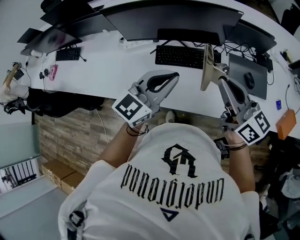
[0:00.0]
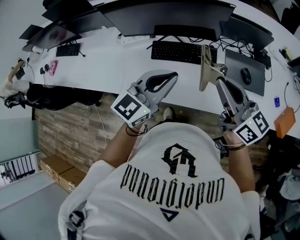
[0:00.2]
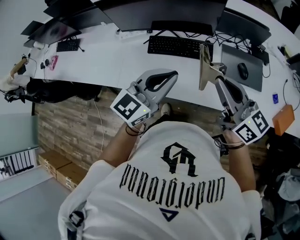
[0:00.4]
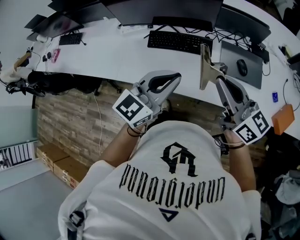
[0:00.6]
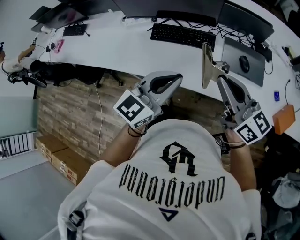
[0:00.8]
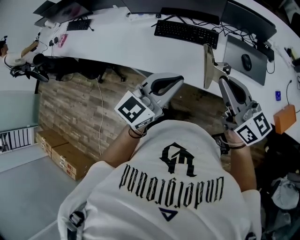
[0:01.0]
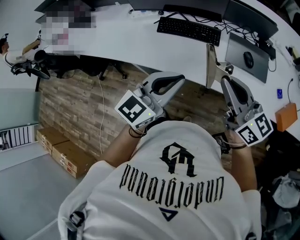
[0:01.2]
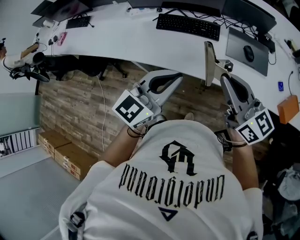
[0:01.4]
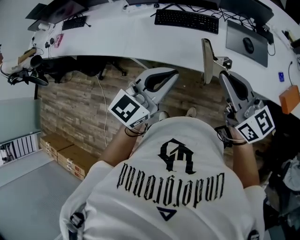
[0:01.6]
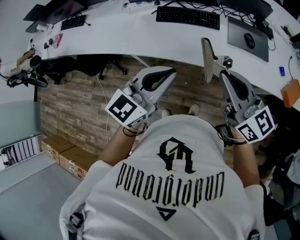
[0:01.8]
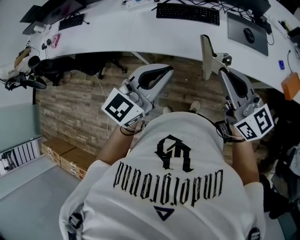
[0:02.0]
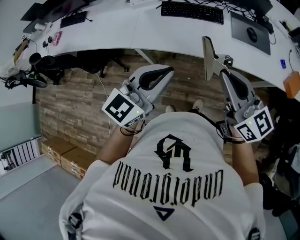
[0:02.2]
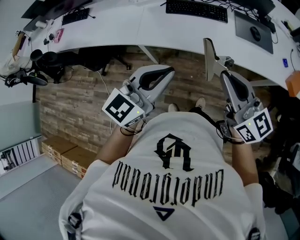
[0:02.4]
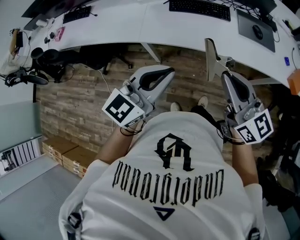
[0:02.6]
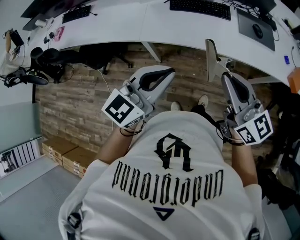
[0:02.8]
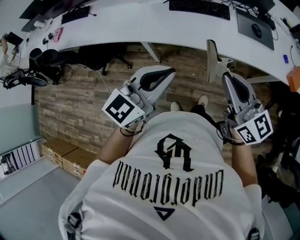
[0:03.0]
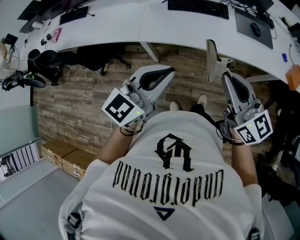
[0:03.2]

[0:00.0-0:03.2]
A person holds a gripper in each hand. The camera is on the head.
0.0 to 1.6 s: The grippers both shift backward by some 25 cm.
1.6 to 3.2 s: The two grippers go about 20 cm to the left and backward.

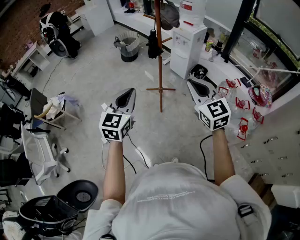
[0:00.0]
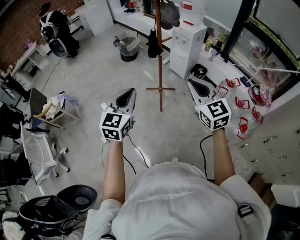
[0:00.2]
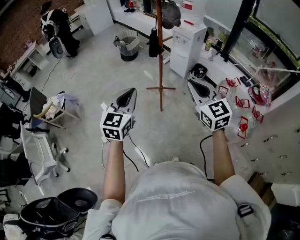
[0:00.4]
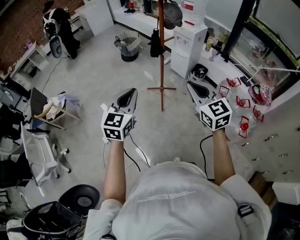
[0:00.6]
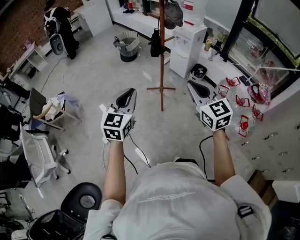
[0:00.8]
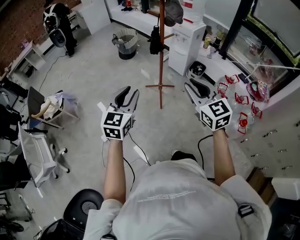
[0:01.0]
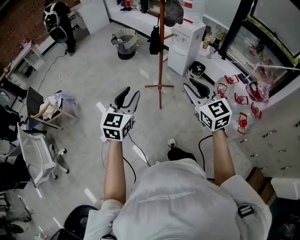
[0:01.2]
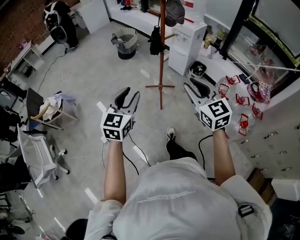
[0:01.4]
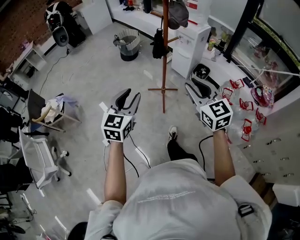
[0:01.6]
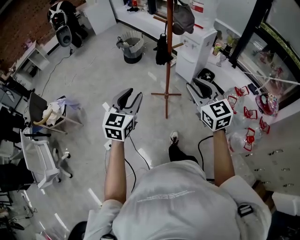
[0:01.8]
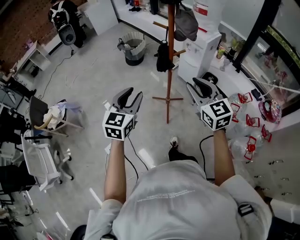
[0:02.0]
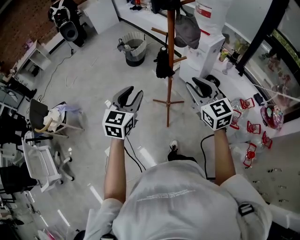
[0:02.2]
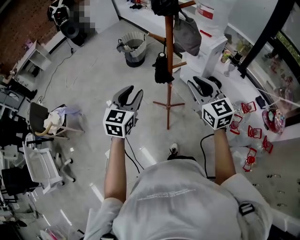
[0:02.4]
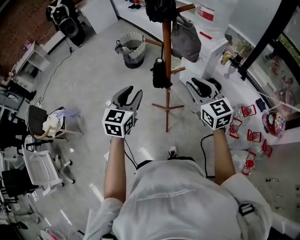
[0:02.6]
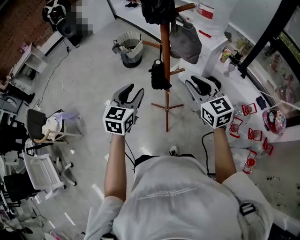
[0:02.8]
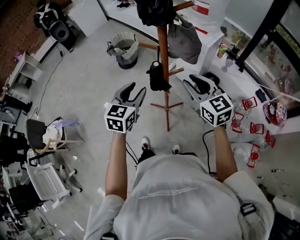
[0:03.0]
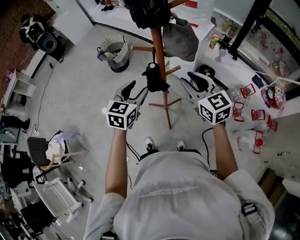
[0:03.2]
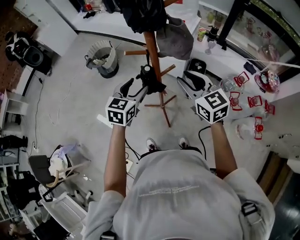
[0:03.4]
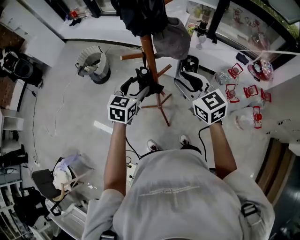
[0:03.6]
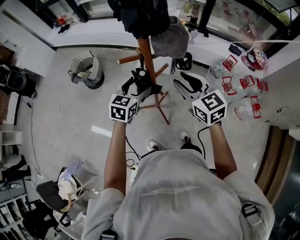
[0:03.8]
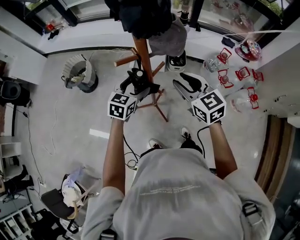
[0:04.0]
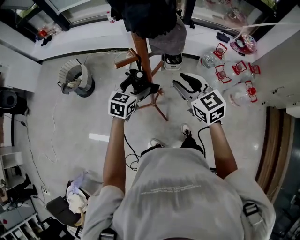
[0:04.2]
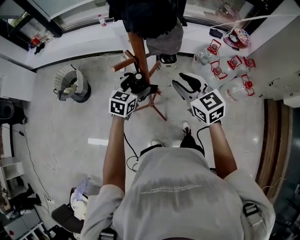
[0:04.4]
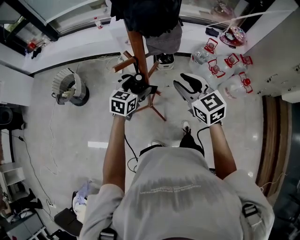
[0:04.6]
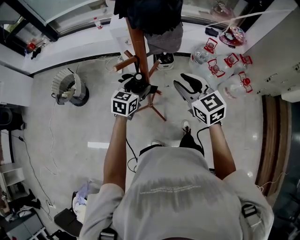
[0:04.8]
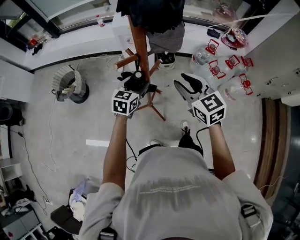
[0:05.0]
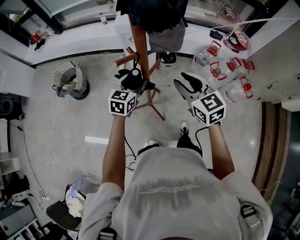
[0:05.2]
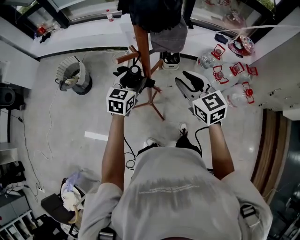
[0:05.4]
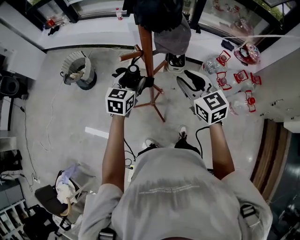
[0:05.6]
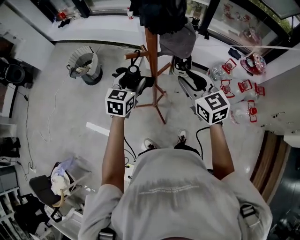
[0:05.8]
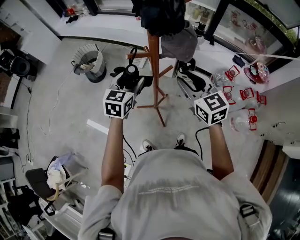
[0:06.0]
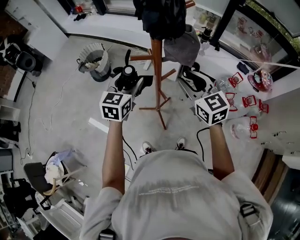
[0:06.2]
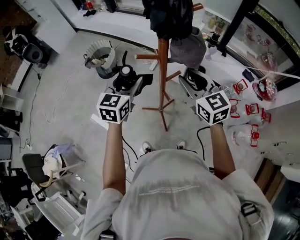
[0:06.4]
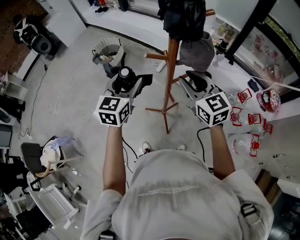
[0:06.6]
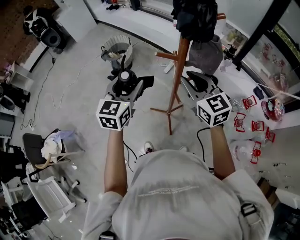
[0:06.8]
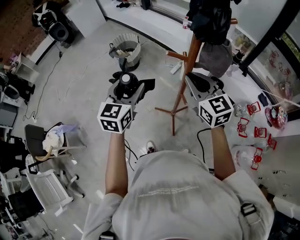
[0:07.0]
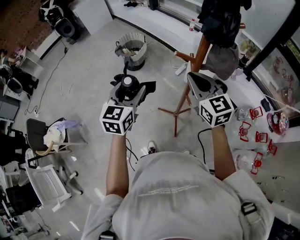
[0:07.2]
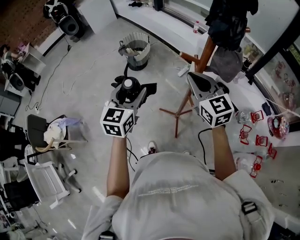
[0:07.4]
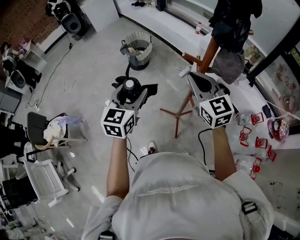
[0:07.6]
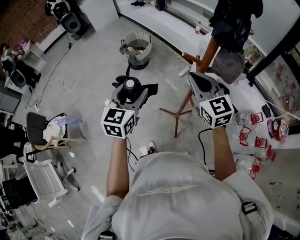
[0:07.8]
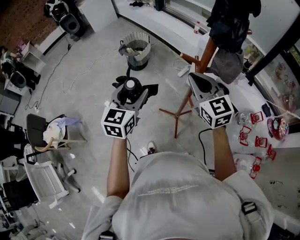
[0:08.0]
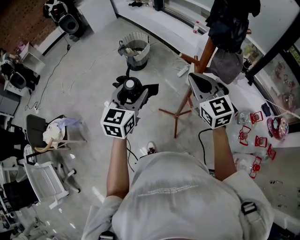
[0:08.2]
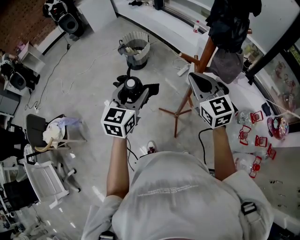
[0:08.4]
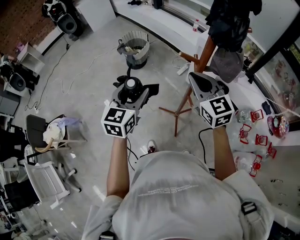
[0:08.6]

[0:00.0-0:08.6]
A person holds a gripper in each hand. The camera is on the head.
0.0 to 1.4 s: The left gripper moves some 5 cm, while the right gripper heads to the left, covering approximately 5 cm, and opens up.
1.4 to 2.8 s: Both grippers travel together forward, about 35 cm.
2.8 to 4.4 s: The right gripper travels downward by approximately 5 cm, and swivels about 40 degrees. The left gripper ends up approximately 25 cm from where it was, swivels about 50 degrees, and opens.
4.4 to 5.8 s: The left gripper shifts roughly 10 cm upward, changes its angle by some 20 degrees, and closes its fingers.
5.8 to 7.2 s: The right gripper ends up some 15 cm from where it was, rotates roughly 30 degrees, and closes; the left gripper changes place by roughly 20 cm, and rotates some 30 degrees.
7.2 to 8.6 s: The grippers move only a little.

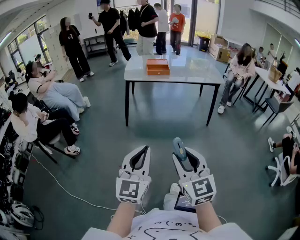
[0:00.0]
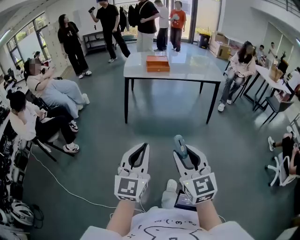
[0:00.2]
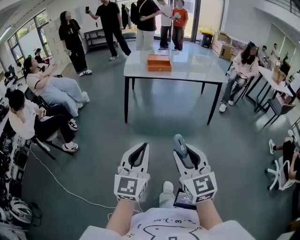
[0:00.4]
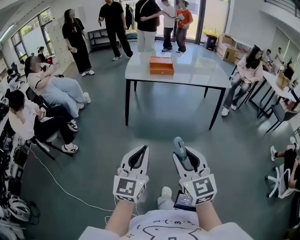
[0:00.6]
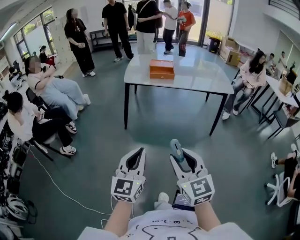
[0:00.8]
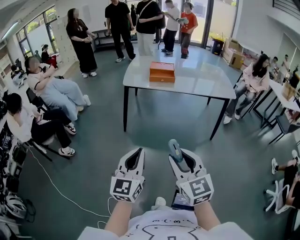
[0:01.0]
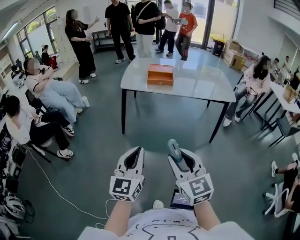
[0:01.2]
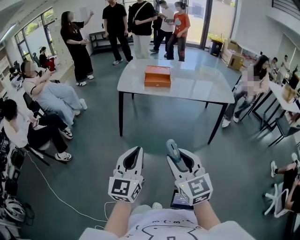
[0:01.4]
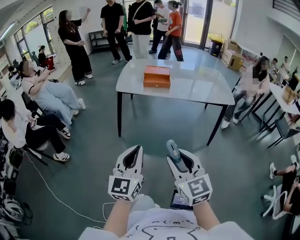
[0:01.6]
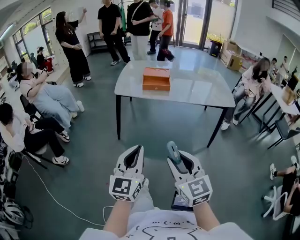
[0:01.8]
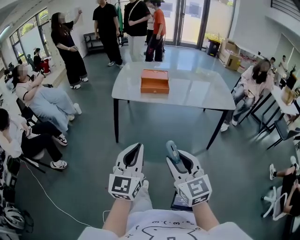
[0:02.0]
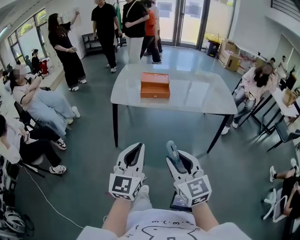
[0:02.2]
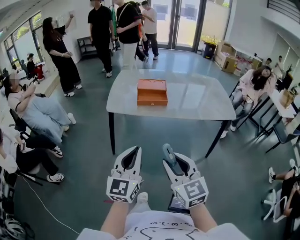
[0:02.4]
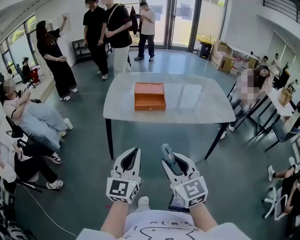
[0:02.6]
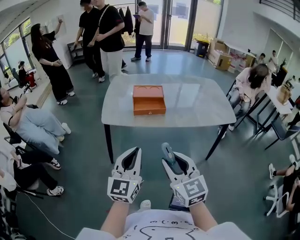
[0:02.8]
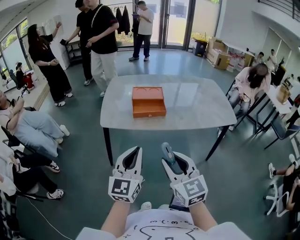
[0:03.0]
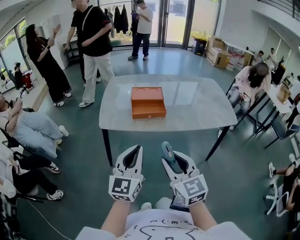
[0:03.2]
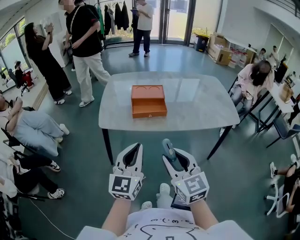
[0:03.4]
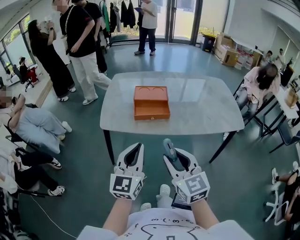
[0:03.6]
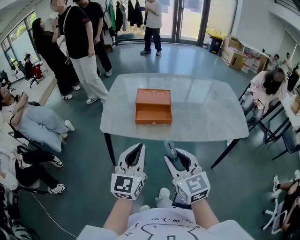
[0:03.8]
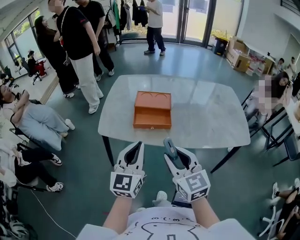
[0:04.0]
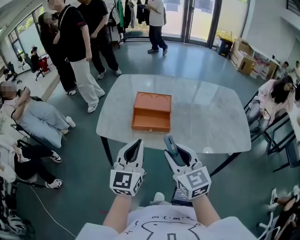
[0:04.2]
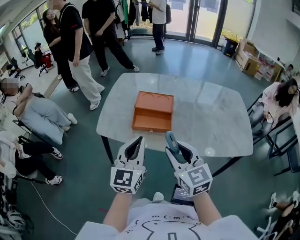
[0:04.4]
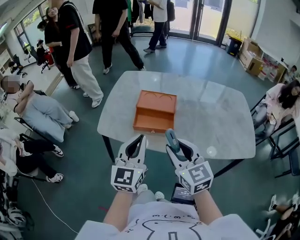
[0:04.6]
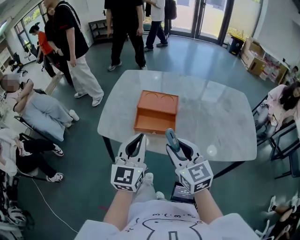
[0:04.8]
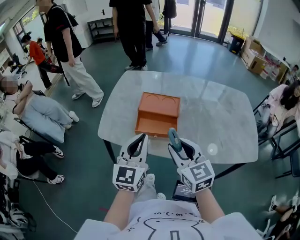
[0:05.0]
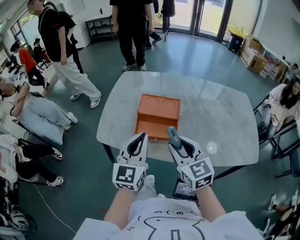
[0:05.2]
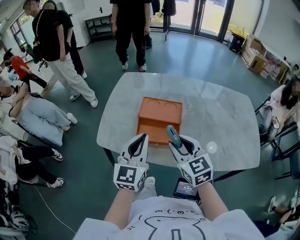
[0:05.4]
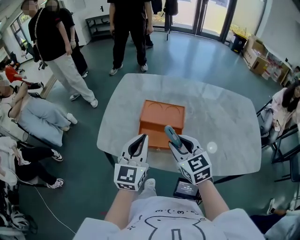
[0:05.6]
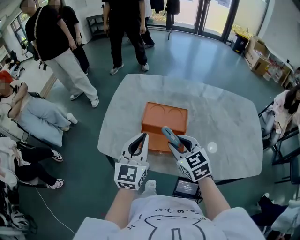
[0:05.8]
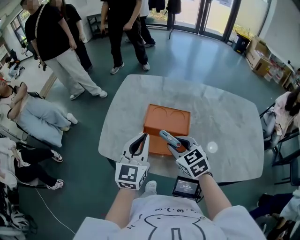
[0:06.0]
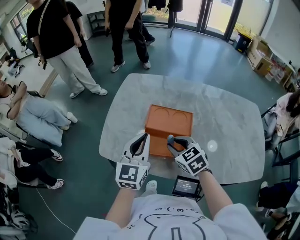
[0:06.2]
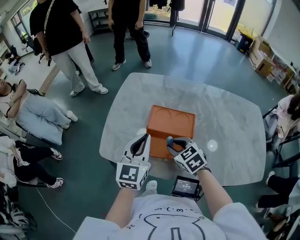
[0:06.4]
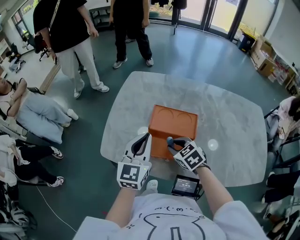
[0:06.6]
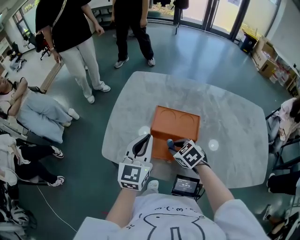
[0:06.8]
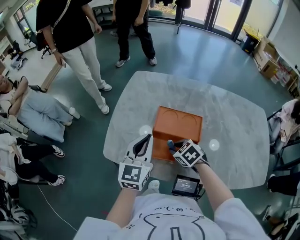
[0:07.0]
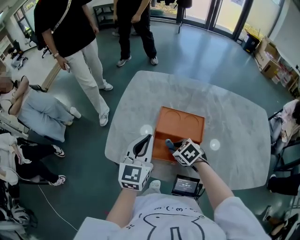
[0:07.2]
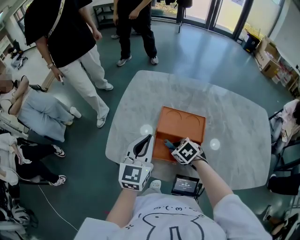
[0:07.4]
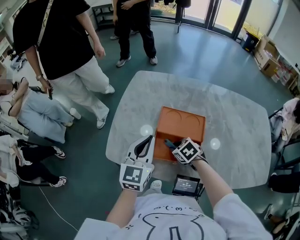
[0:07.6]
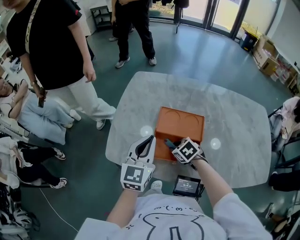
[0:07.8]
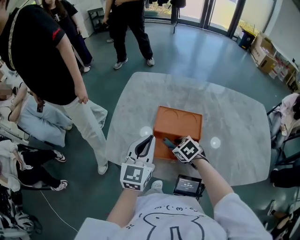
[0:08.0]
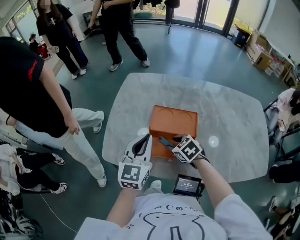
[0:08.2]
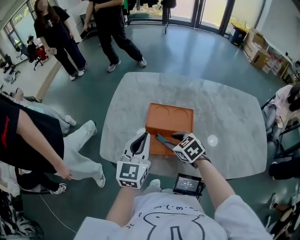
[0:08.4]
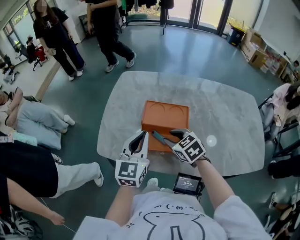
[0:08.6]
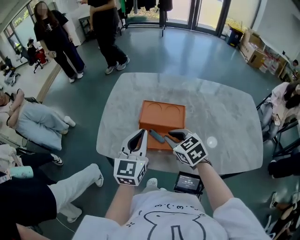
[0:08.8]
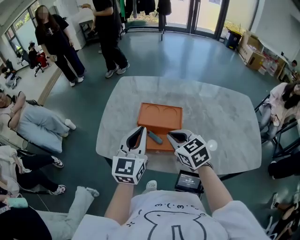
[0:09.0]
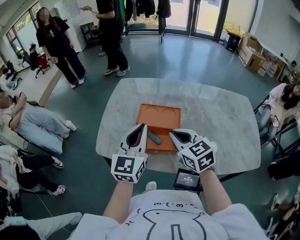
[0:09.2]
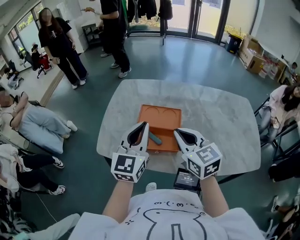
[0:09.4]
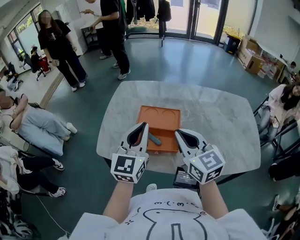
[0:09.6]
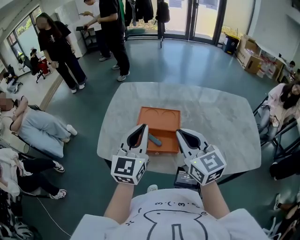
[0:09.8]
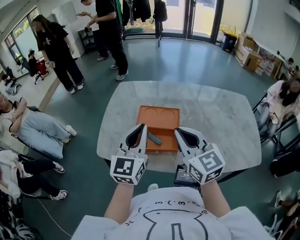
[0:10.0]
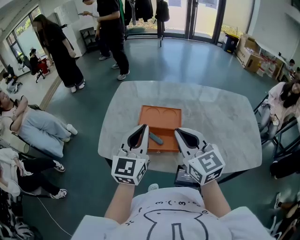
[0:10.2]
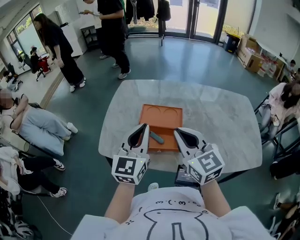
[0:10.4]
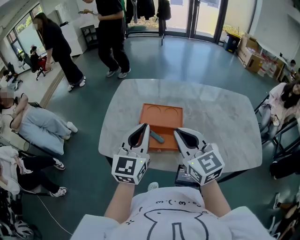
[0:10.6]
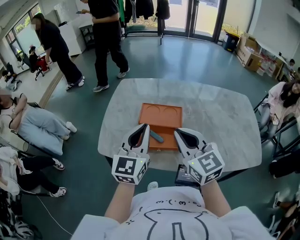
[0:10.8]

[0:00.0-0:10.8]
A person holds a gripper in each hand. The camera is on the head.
0.0 to 1.6 s: Both grippers travel together forward, some 25 cm.
1.6 to 3.0 s: Both grippers move forward, about 30 cm.
3.0 to 4.6 s: The grippers both shift forward by roughly 20 cm.
4.6 to 6.2 s: The left gripper shifts roughly 20 cm forward, while the right gripper heads forward and downward, covering about 25 cm, and rotates some 30 degrees.
6.2 to 7.8 s: The right gripper goes some 15 cm downward, and swivels approximately 20 degrees.
7.8 to 9.2 s: The right gripper goes roughly 25 cm upward, angles its fingers upward, by some 40 degrees, and closes up, while the left gripper travels upward, backward and to the right by approximately 10 cm.
9.2 to 10.8 s: The right gripper travels upward by about 5 cm.

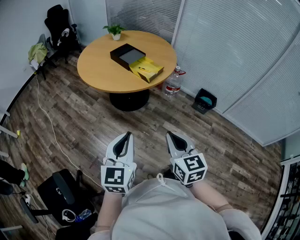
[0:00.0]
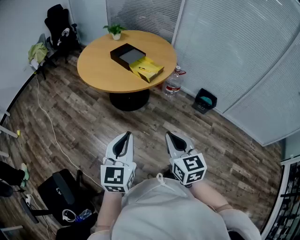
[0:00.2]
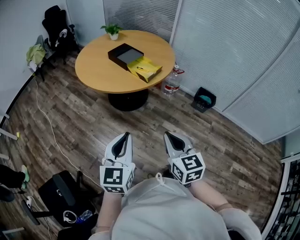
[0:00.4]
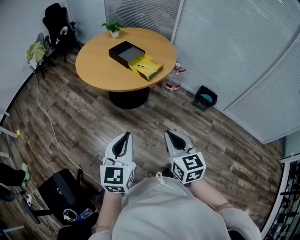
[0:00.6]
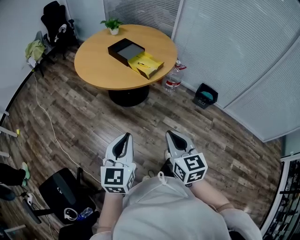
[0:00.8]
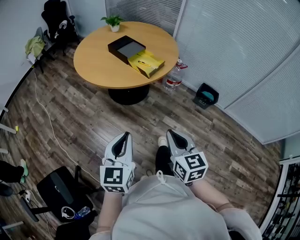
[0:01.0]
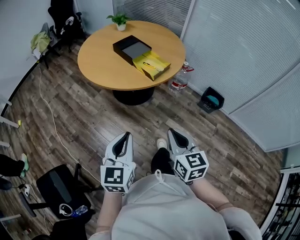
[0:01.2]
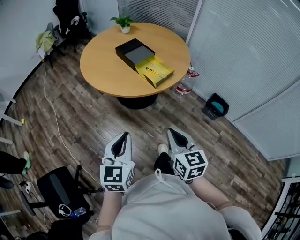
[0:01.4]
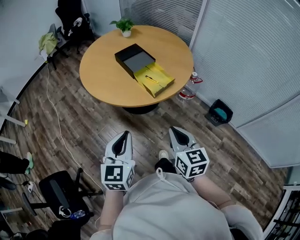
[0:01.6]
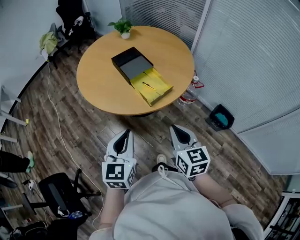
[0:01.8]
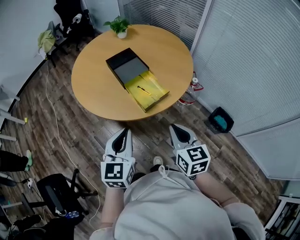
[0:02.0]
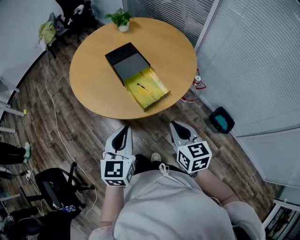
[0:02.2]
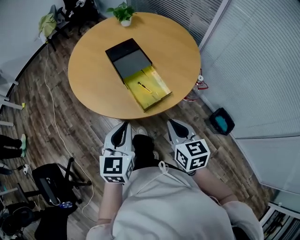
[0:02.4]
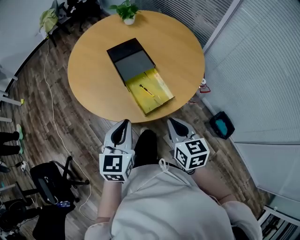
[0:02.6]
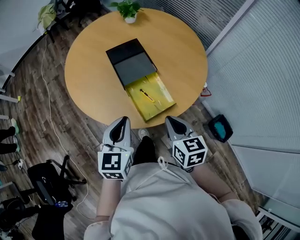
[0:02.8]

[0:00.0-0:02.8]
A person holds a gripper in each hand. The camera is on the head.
0.0 to 1.4 s: Both grippers travel together forward, approximately 15 cm.
1.4 to 2.8 s: The right gripper moves forward, some 40 cm; the left gripper shifts roughly 40 cm forward and to the right.
